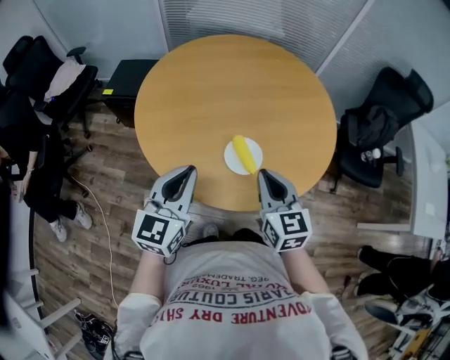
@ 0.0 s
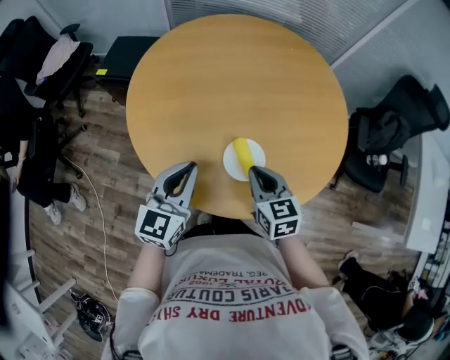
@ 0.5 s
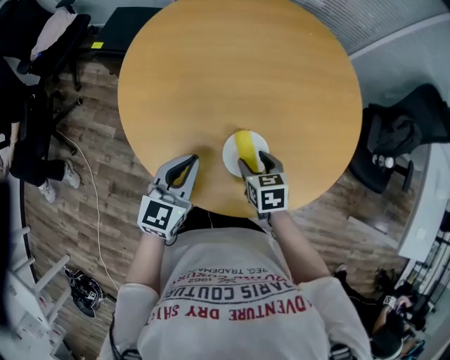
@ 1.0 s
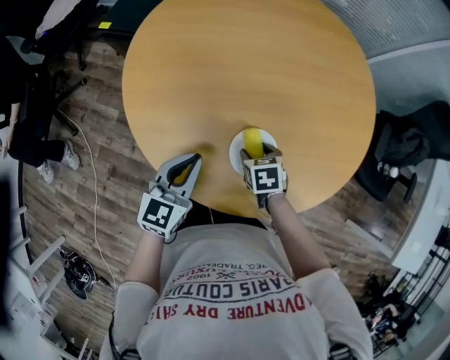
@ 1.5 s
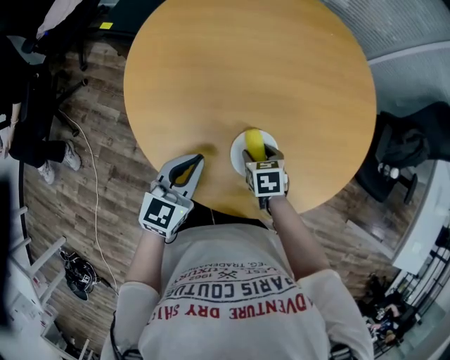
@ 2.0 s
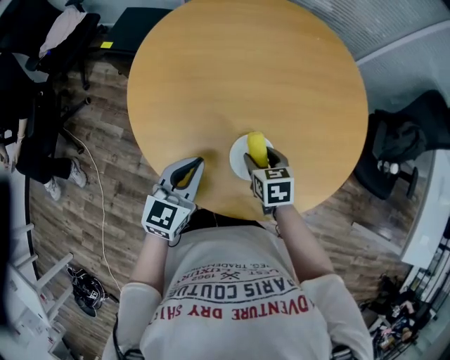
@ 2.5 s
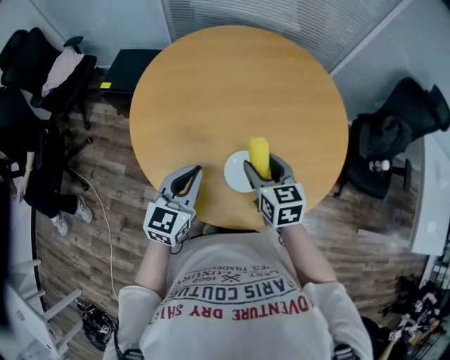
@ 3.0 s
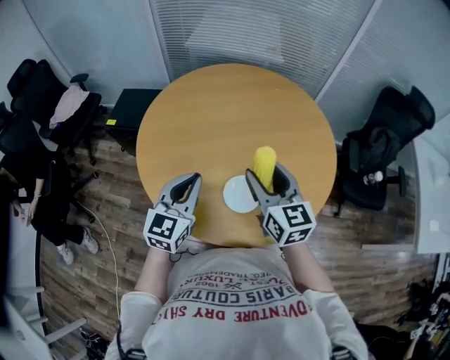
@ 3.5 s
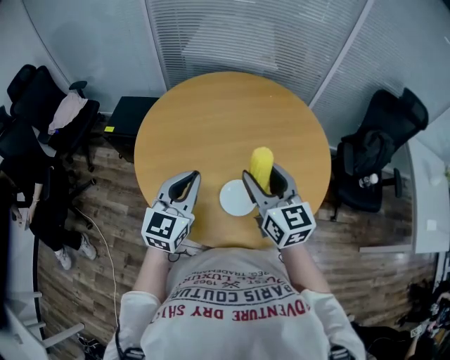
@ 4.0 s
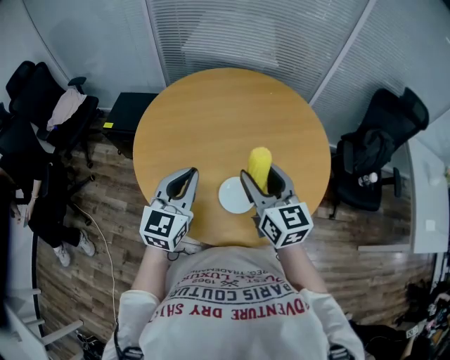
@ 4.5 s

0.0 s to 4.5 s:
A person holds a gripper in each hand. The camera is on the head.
0.0 to 2.0 s: The right gripper shifts roughly 30 cm downward and forward, tips its fingers downward by approximately 50 degrees, and opens. Meanwhile the left gripper is displaced downward and forward by approximately 20 cm.
2.0 to 4.5 s: The right gripper goes roughly 35 cm upward, and tilts its fingers roughly 60 degrees upward. Meanwhile the left gripper moves upward, roughly 20 cm.

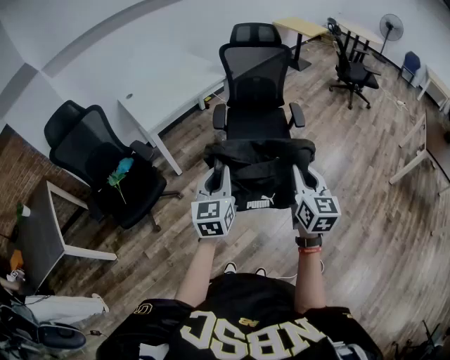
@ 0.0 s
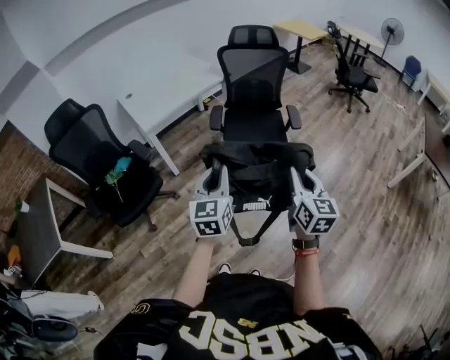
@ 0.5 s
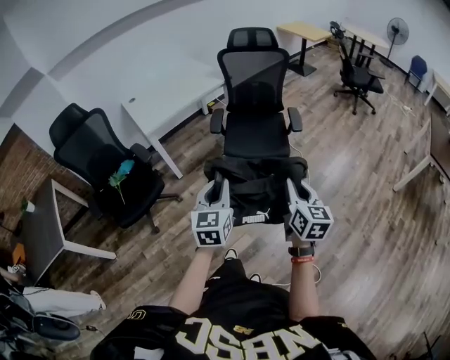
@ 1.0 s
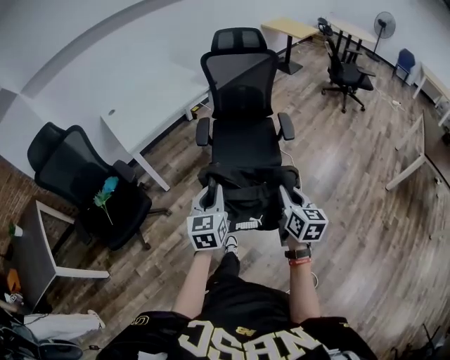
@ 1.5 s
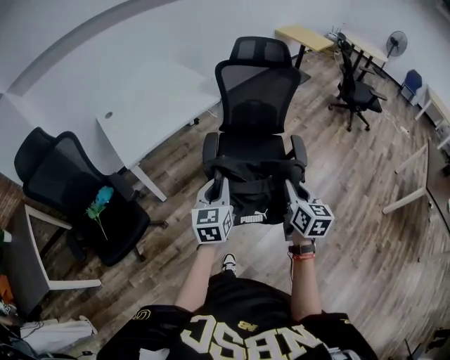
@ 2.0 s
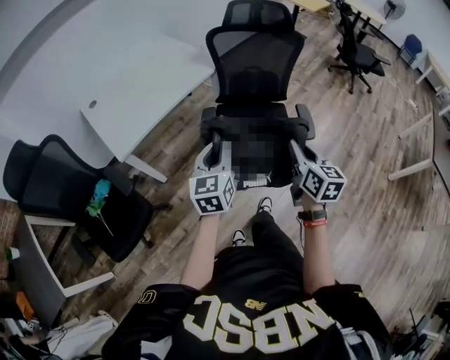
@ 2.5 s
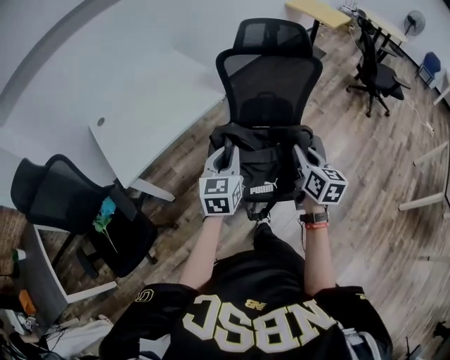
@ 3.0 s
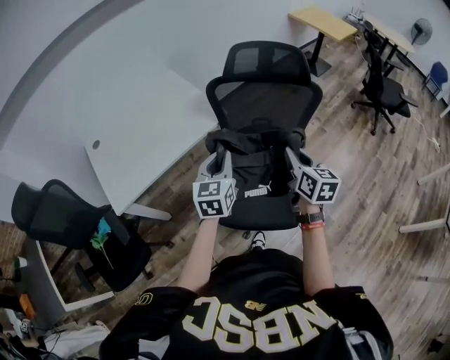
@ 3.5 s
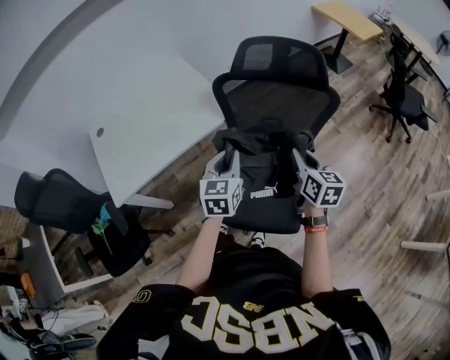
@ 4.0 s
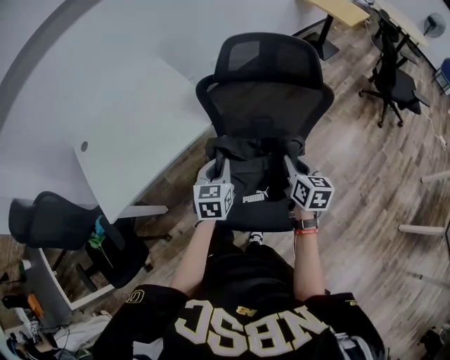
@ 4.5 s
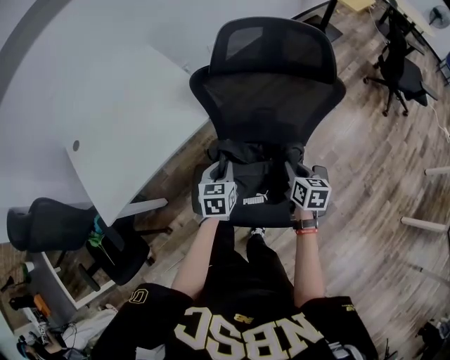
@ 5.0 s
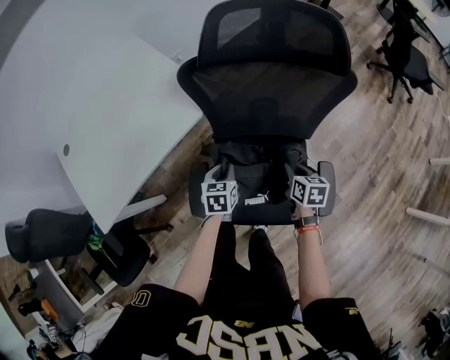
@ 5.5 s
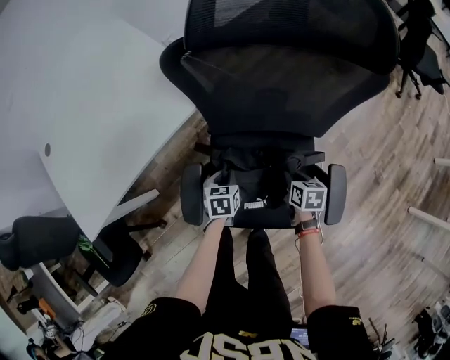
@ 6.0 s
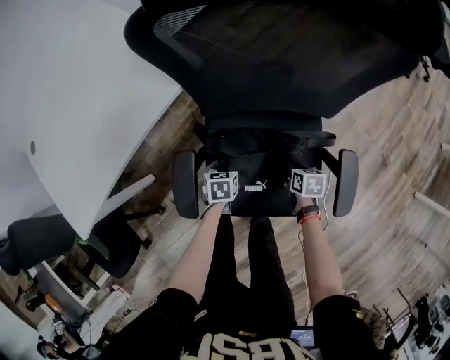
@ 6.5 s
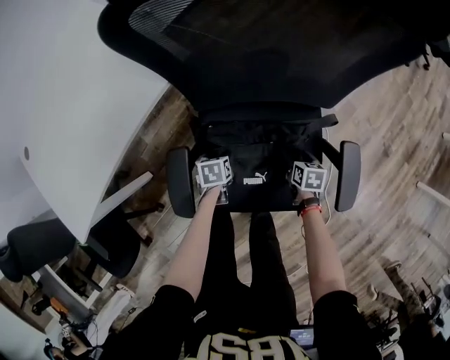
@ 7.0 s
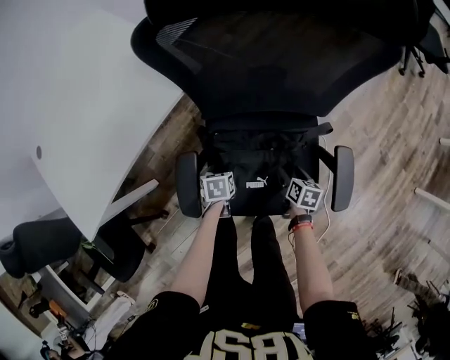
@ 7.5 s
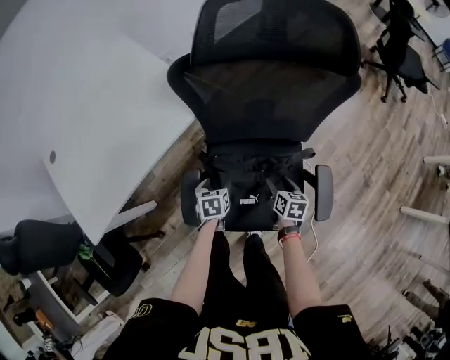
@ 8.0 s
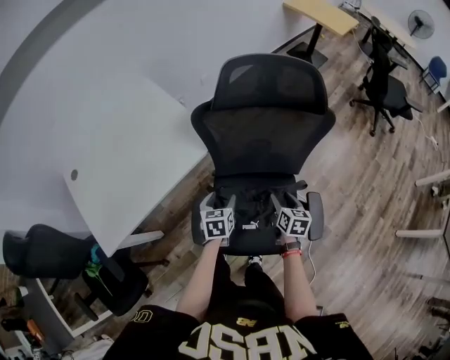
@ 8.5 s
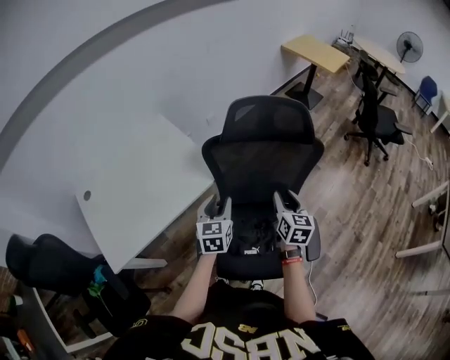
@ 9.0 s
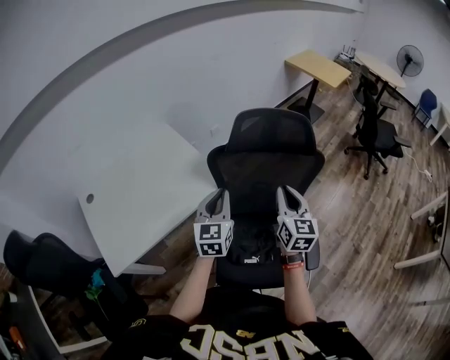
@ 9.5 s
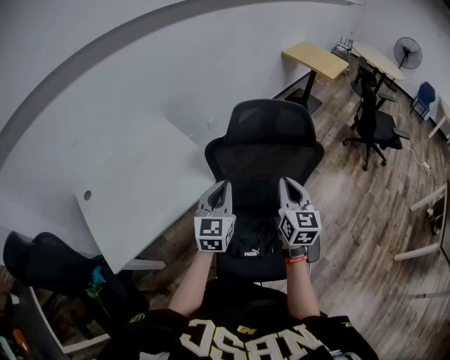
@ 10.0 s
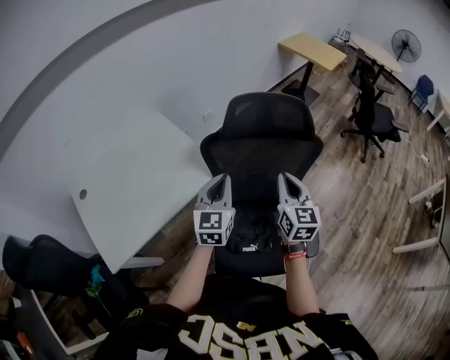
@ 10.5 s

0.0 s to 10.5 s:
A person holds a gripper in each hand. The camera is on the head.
0.0 to 2.0 s: Both grippers travel together forward, some 30 cm.
2.0 to 4.0 s: The two grippers travel together, forward, roughly 50 cm.
4.0 to 6.5 s: The grippers both shift downward by about 50 cm. The left gripper angles its fingers downward, by approximately 40 degrees. The right gripper tips its fingers downward by some 40 degrees.
6.5 to 8.5 s: The two grippers go some 30 cm upward. The right gripper changes its angle by approximately 30 degrees, and opens up. The left gripper rotates some 20 degrees, and opens.
8.5 to 10.5 s: Both grippers travel together upward, some 30 cm. The left gripper tilts its fingers some 40 degrees upward, and closes its fingers. Meanwhile the right gripper turns by about 40 degrees, and closes.

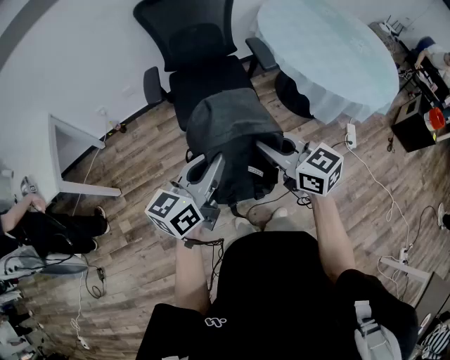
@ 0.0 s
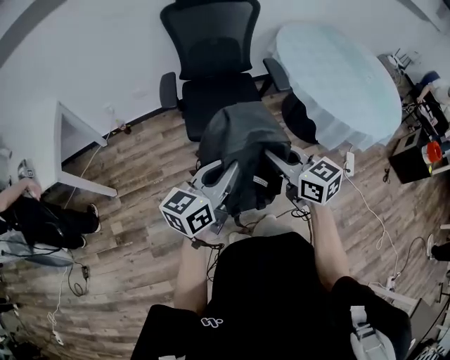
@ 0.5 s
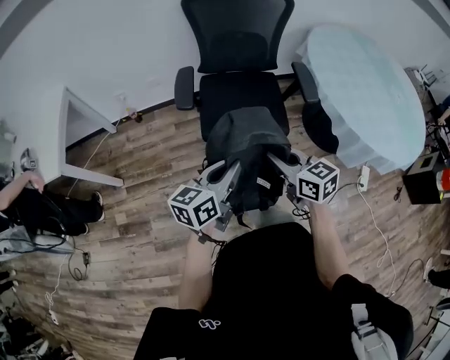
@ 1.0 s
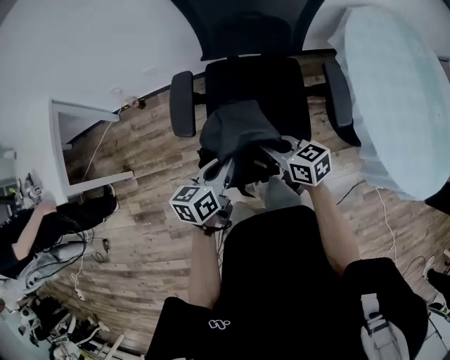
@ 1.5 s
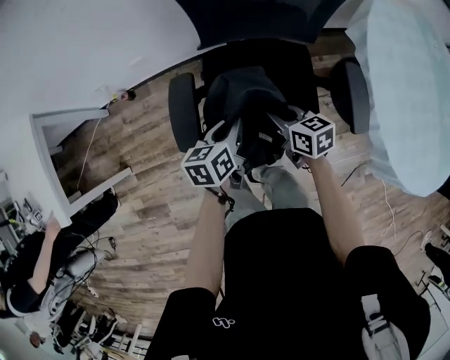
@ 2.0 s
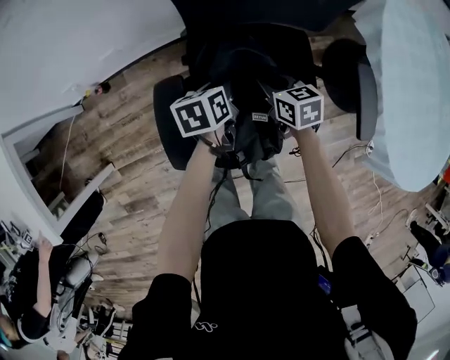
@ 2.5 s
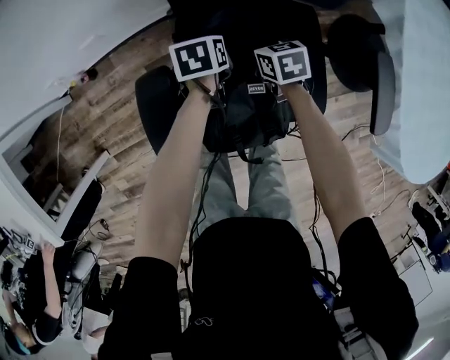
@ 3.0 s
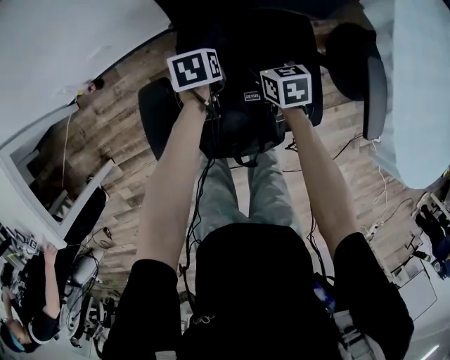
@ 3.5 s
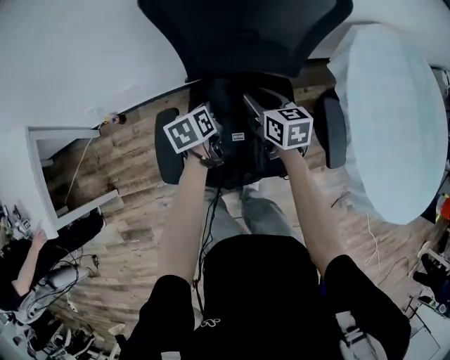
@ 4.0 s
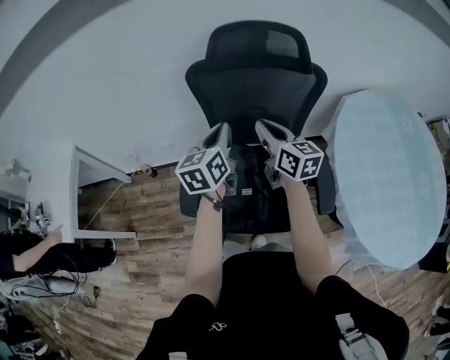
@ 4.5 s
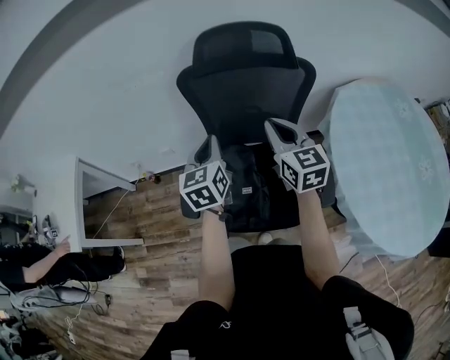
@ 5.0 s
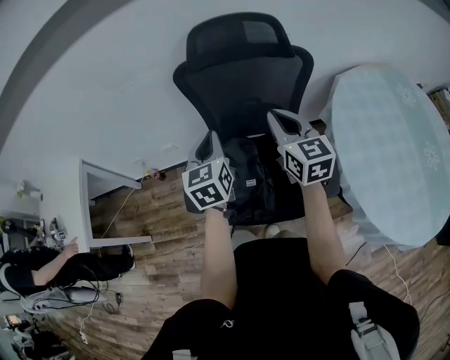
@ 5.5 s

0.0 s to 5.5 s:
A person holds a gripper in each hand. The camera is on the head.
0.0 to 2.0 s: Both grippers are carried forward, roughly 50 cm. The grippers both shift downward by some 25 cm. The left gripper tips its fingers downward by about 30 degrees; the right gripper swivels approximately 30 degrees.
2.0 to 3.5 s: The grippers both shift forward and downward by approximately 25 cm. The left gripper points its fingers some 30 degrees further downward, and opens. Meanwhile the right gripper changes its angle by roughly 20 degrees, and opens its fingers.
3.5 to 5.5 s: The two grippers go some 50 cm upward. The right gripper points its fingers about 40 degrees further upward, and closes, while the left gripper angles its fingers upward, by some 50 degrees, and closes.

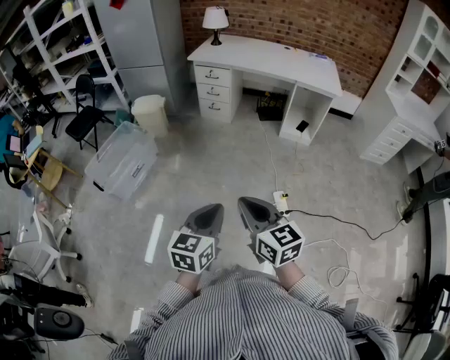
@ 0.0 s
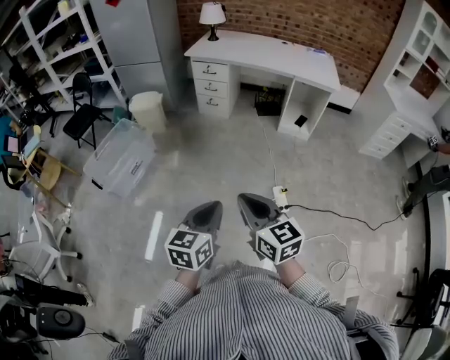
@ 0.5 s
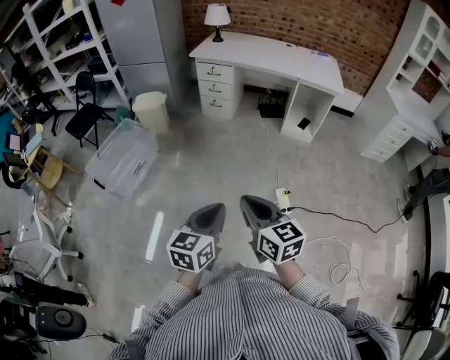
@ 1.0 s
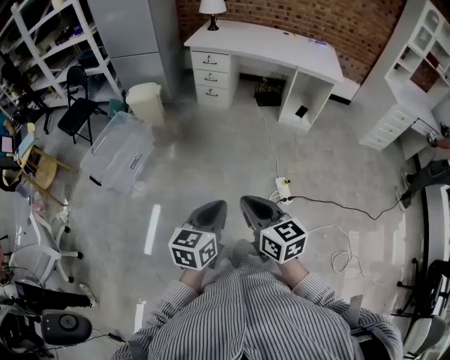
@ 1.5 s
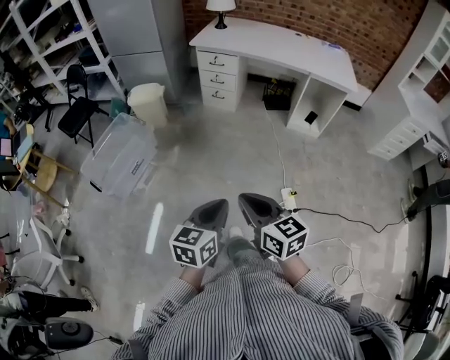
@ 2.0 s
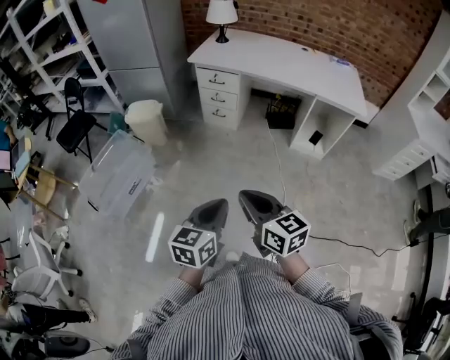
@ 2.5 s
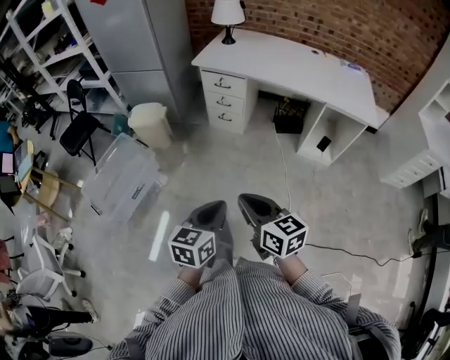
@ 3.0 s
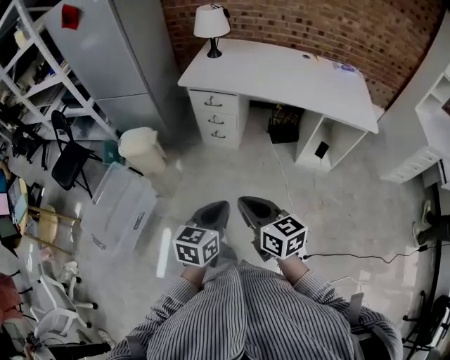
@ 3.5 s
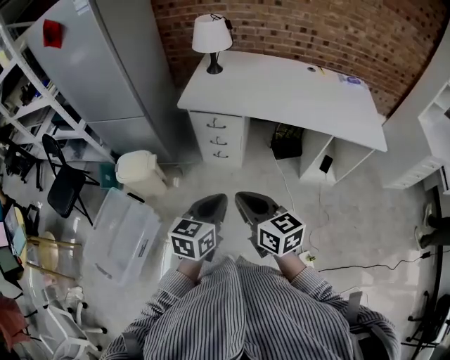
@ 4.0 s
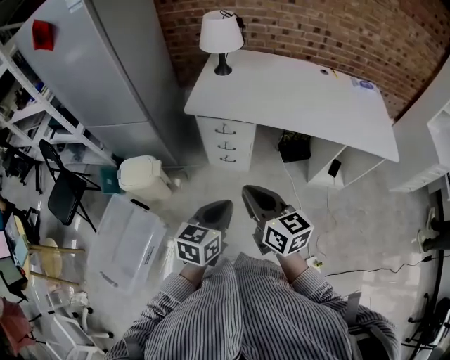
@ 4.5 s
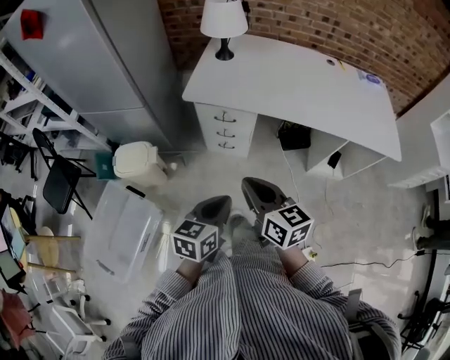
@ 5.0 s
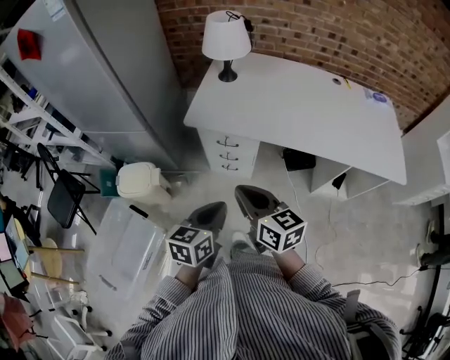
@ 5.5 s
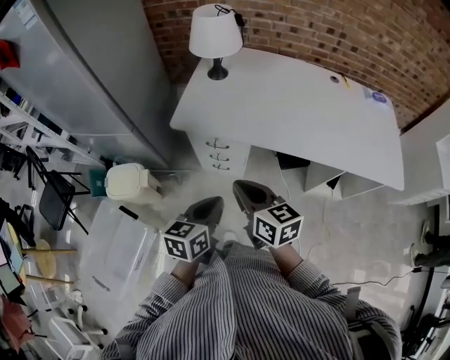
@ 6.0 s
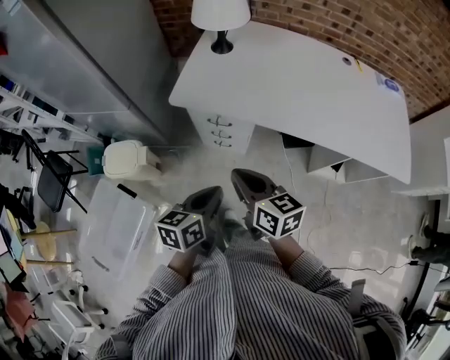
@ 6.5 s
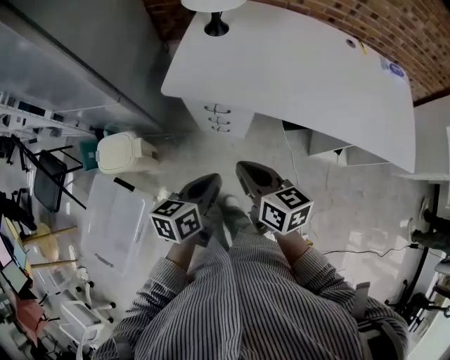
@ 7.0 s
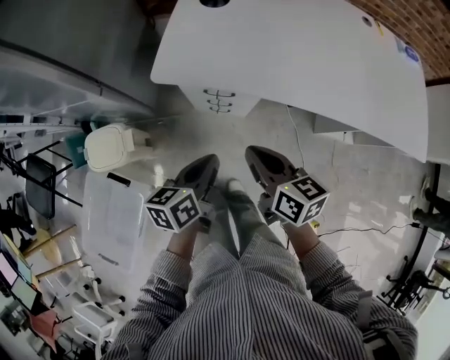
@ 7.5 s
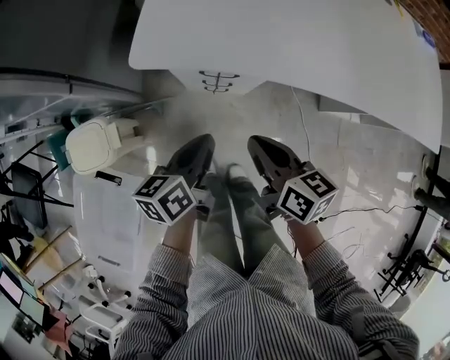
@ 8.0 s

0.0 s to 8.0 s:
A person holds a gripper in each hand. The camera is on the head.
0.0 to 2.0 s: The left gripper heads forward, covering approximately 10 cm. The right gripper moves forward and to the left, some 15 cm.
2.0 to 4.0 s: The two grippers travel together, forward, some 60 cm.
4.0 to 6.0 s: The two grippers go some 25 cm forward.
6.0 to 8.0 s: Both grippers move downward and forward, roughly 25 cm. The left gripper changes its angle by roughly 20 degrees. Meanwhile the right gripper swivels some 20 degrees.
